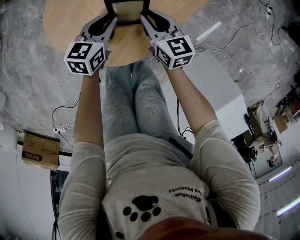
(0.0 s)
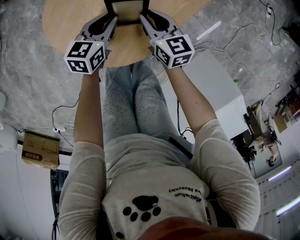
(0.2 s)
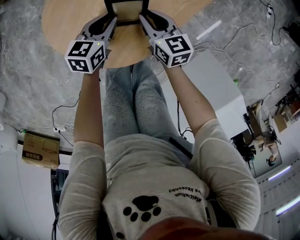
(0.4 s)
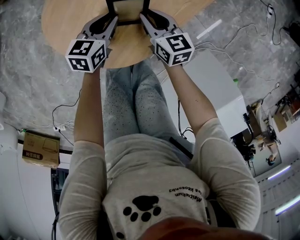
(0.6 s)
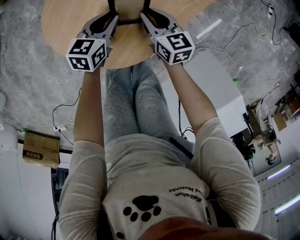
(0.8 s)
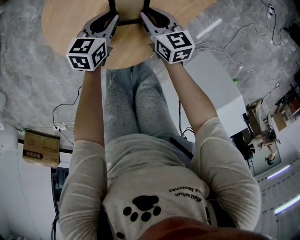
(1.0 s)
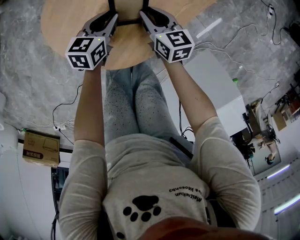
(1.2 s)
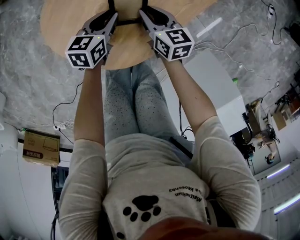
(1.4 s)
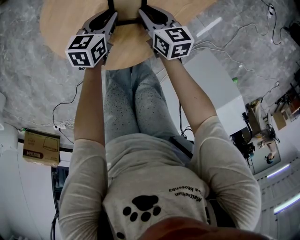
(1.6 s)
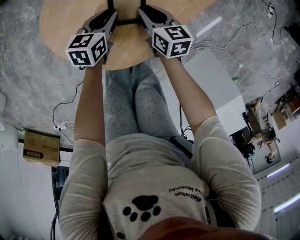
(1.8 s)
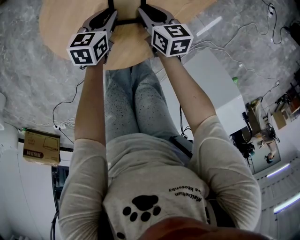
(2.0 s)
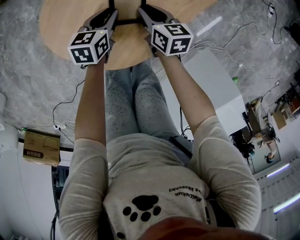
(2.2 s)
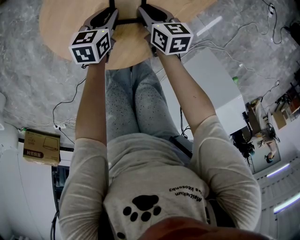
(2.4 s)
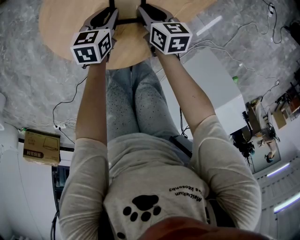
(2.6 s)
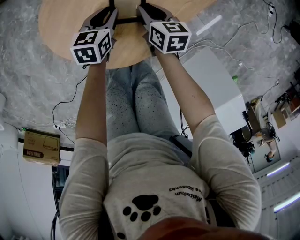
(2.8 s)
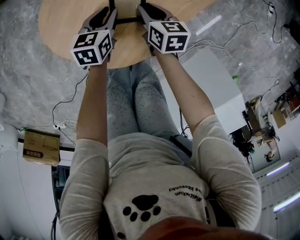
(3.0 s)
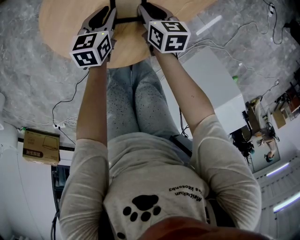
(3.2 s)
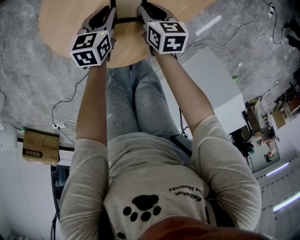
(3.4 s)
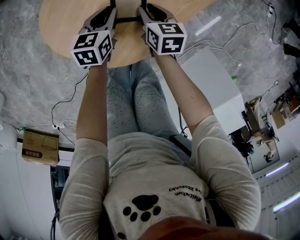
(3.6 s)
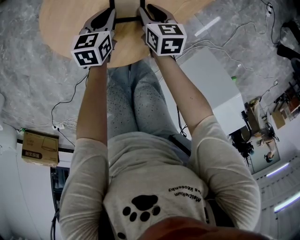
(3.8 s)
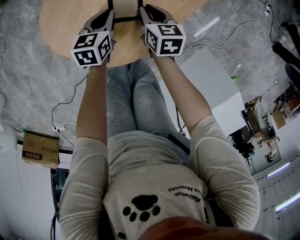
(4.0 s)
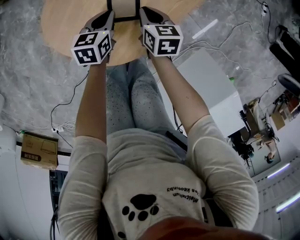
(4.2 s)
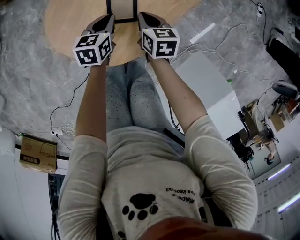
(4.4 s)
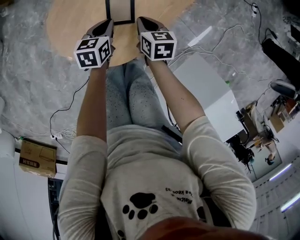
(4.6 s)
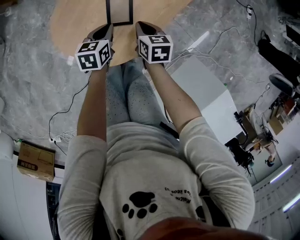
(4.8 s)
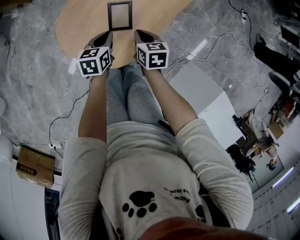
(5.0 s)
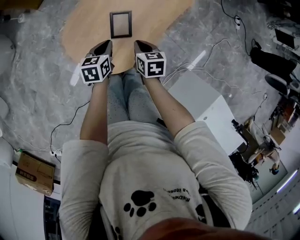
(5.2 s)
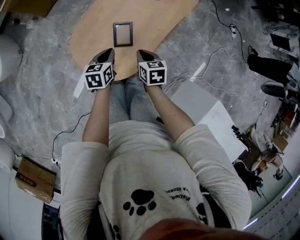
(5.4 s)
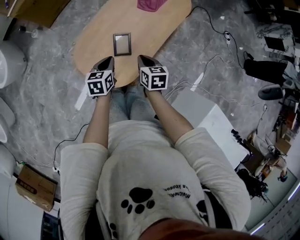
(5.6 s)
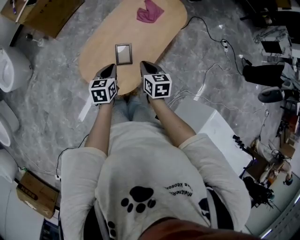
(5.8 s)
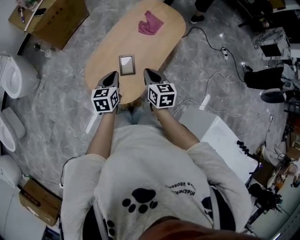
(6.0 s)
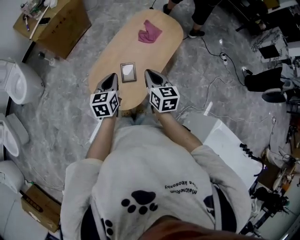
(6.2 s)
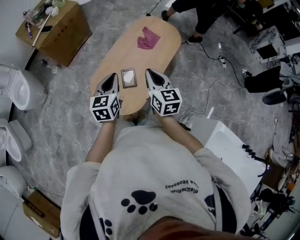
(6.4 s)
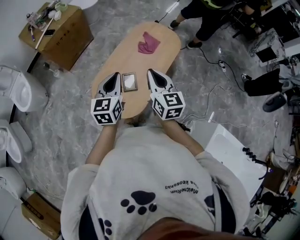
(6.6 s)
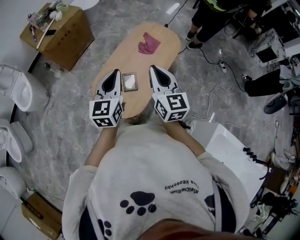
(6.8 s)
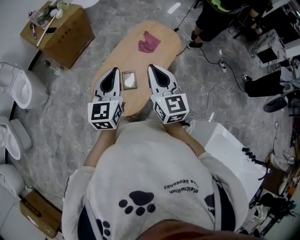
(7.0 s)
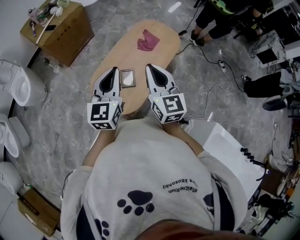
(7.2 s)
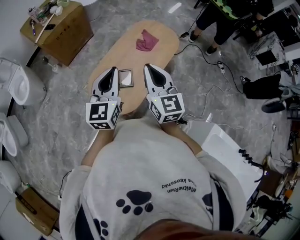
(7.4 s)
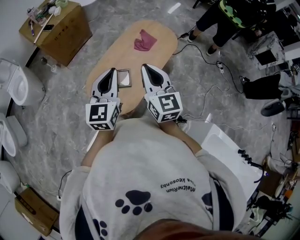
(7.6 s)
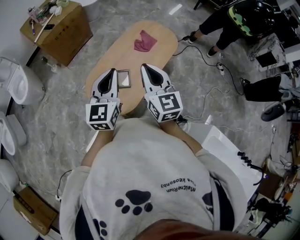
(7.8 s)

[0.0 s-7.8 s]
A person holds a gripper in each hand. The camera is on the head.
0.0 to 1.6 s: The right gripper shifts by approximately 5 cm.
1.6 to 3.2 s: The grippers stay close to where they were, moving slightly.
3.2 to 4.6 s: Both grippers move upward, roughly 5 cm.
4.6 to 6.2 s: Both grippers move upward, some 35 cm. The right gripper rotates some 30 degrees. The left gripper changes its angle by approximately 30 degrees.
6.2 to 7.8 s: The grippers both shift upward by about 15 cm. The right gripper turns by some 30 degrees; the left gripper turns by roughly 30 degrees.

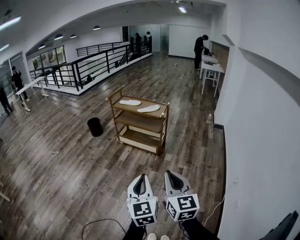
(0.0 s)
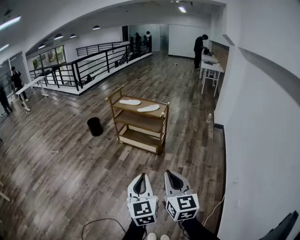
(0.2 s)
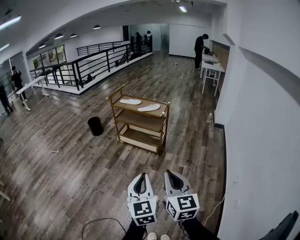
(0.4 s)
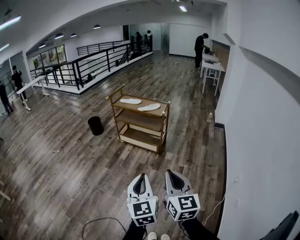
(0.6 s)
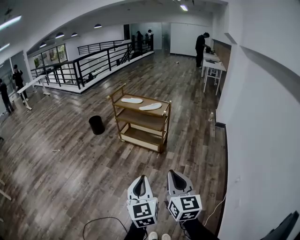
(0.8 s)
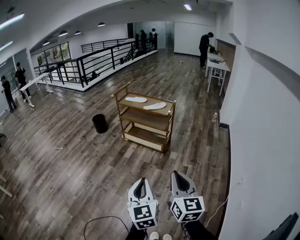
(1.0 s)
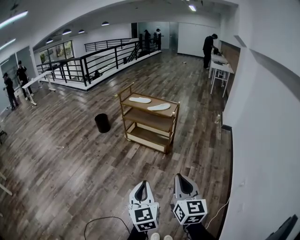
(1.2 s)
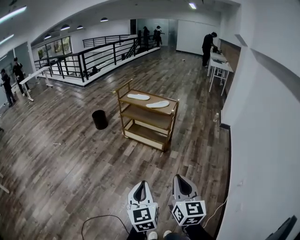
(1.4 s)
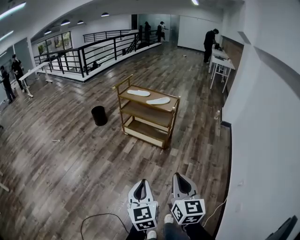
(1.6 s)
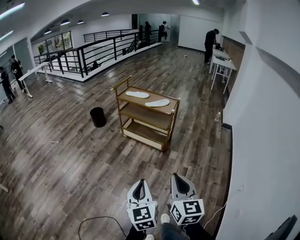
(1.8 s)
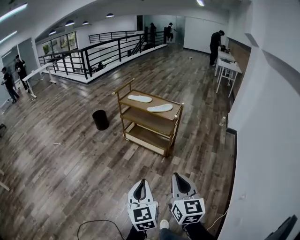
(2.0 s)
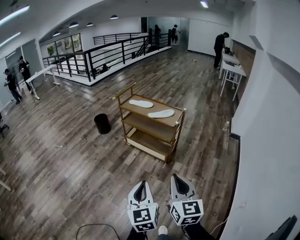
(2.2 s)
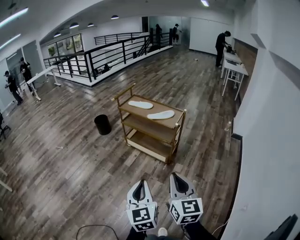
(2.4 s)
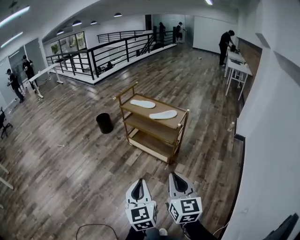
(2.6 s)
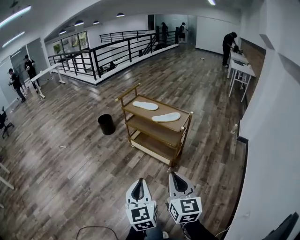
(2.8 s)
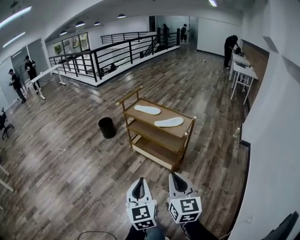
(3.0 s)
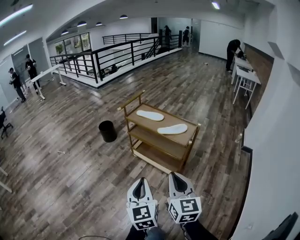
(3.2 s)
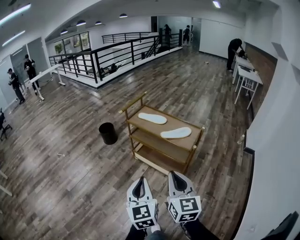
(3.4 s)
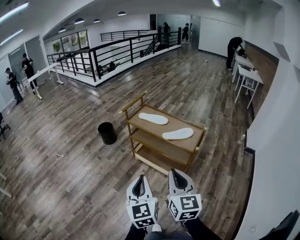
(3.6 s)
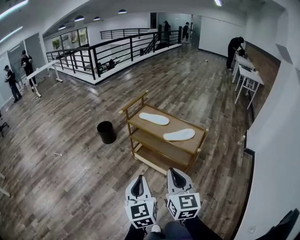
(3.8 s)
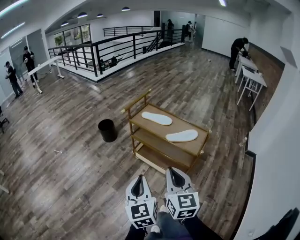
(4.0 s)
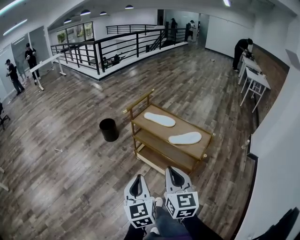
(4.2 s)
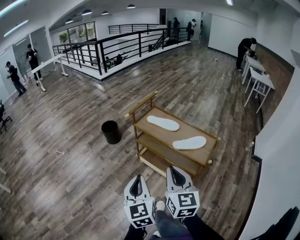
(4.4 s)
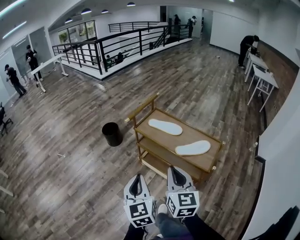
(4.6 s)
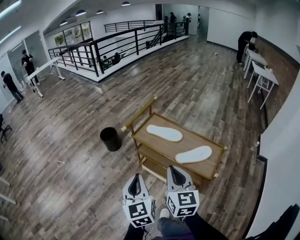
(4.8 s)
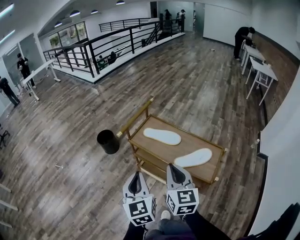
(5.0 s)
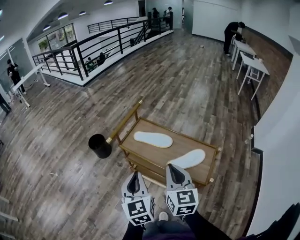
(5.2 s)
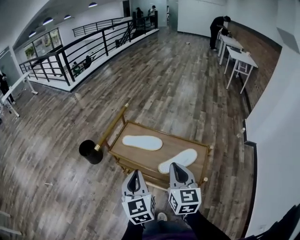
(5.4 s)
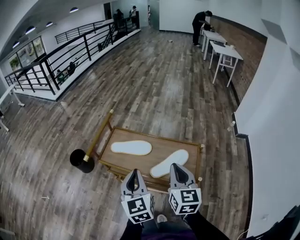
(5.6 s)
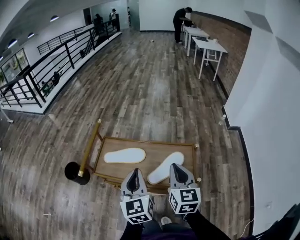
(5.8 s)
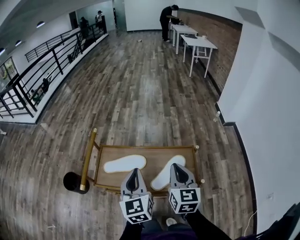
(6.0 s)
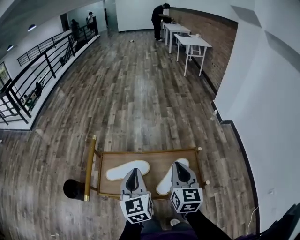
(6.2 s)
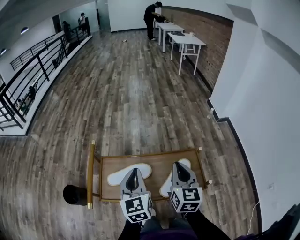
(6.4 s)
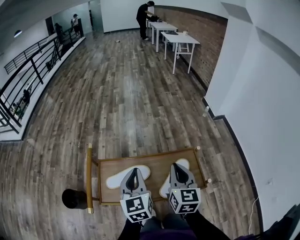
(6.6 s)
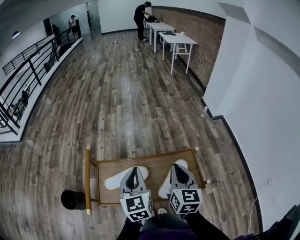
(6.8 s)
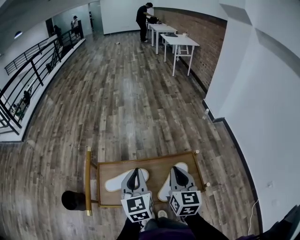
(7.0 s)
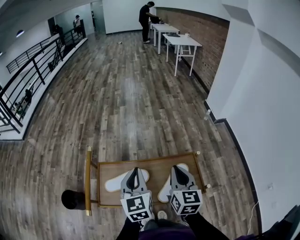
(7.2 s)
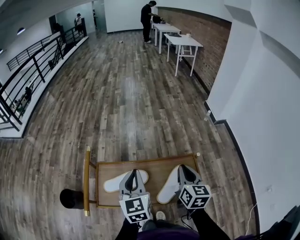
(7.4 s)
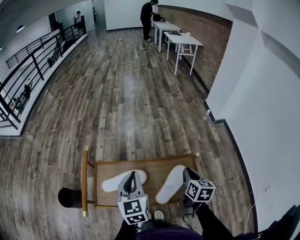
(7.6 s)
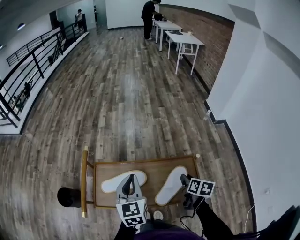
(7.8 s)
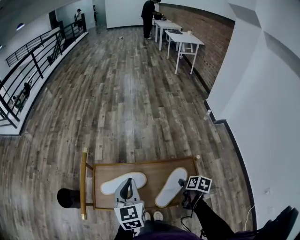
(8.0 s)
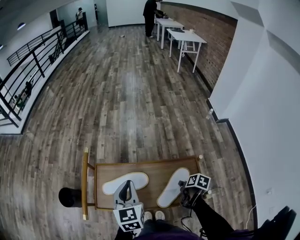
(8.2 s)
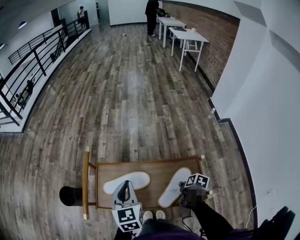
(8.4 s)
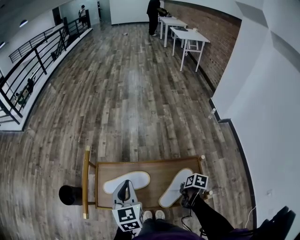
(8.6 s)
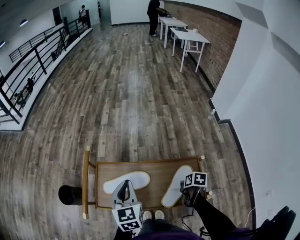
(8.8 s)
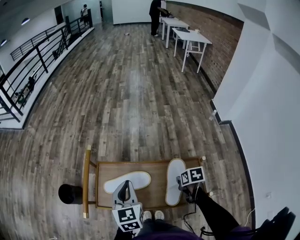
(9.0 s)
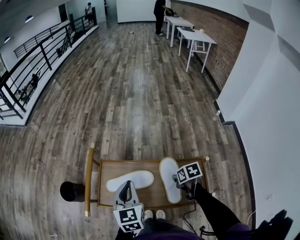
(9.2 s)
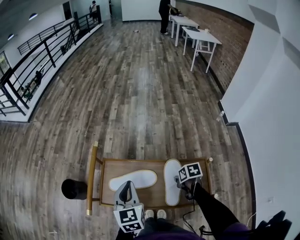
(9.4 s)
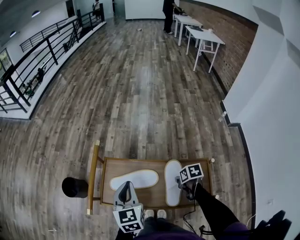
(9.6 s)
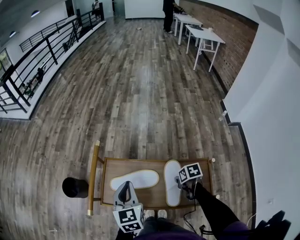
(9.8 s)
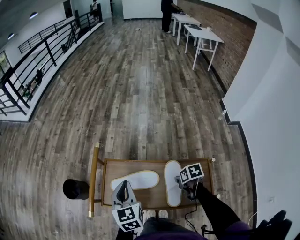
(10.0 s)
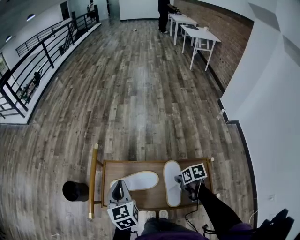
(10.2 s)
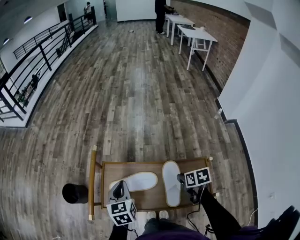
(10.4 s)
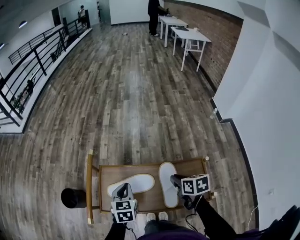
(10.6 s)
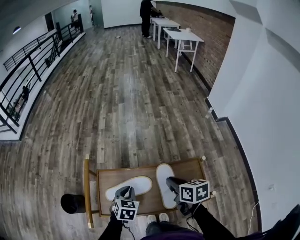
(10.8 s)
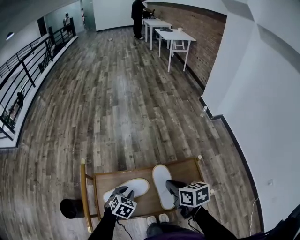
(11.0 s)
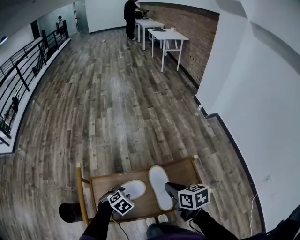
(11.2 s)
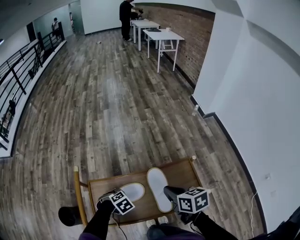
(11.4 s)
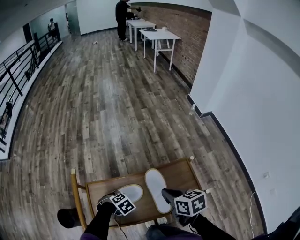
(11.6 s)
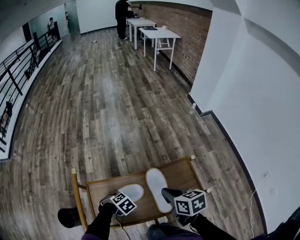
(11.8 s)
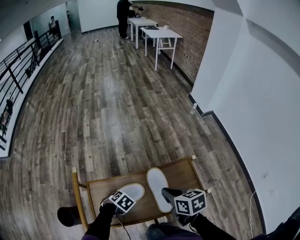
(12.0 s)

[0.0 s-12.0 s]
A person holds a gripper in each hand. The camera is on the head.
0.0 to 1.6 s: The right gripper moves about 5 cm; the left gripper is displaced downward by about 5 cm.
1.6 to 3.0 s: The two grippers go about 30 cm forward.
3.0 to 4.4 s: The grippers both shift forward by some 30 cm.
4.4 to 6.0 s: The right gripper shifts by about 35 cm, and swivels about 40 degrees. Meanwhile the left gripper shifts by approximately 40 cm, and changes its angle by about 40 degrees.
6.0 to 7.6 s: The right gripper travels downward, forward and to the right by roughly 15 cm, and turns by some 30 degrees; the left gripper heads forward, covering about 10 cm.
7.6 to 9.0 s: The right gripper heads downward, covering about 10 cm, angles its fingers downward, by some 30 degrees, and opens, then closes once more; the left gripper moves some 5 cm.
9.0 to 10.4 s: The left gripper heads downward, covering roughly 5 cm.
10.4 to 12.0 s: The left gripper goes approximately 20 cm downward, angles its fingers downward, by some 50 degrees, and opens, then closes again. Meanwhile the right gripper moves upward, roughly 10 cm.

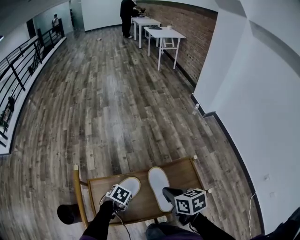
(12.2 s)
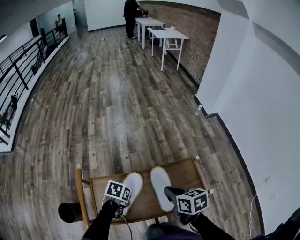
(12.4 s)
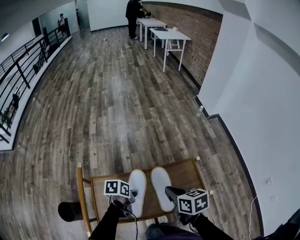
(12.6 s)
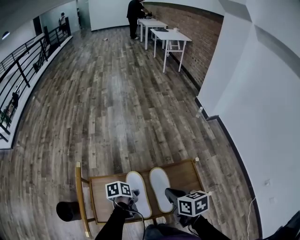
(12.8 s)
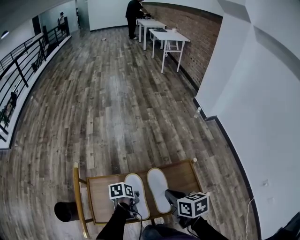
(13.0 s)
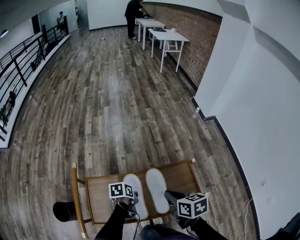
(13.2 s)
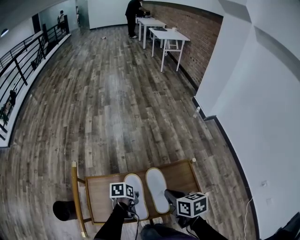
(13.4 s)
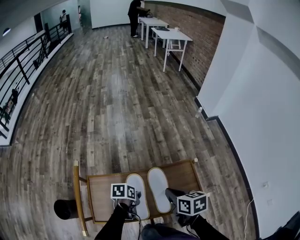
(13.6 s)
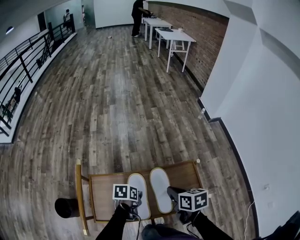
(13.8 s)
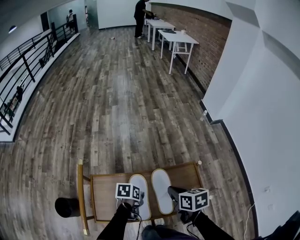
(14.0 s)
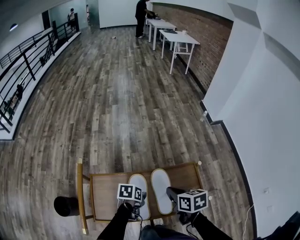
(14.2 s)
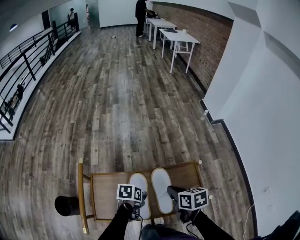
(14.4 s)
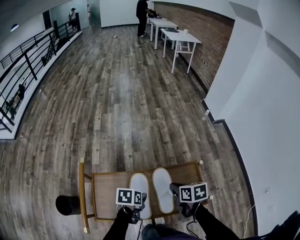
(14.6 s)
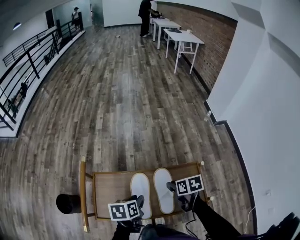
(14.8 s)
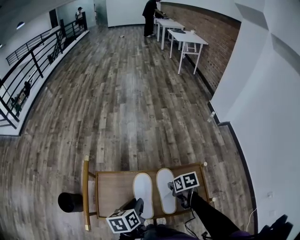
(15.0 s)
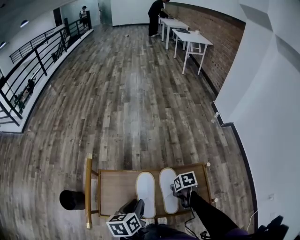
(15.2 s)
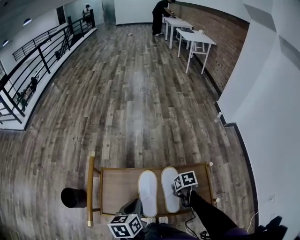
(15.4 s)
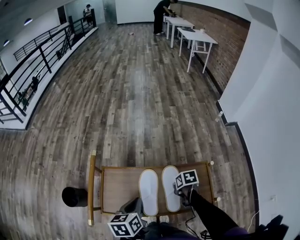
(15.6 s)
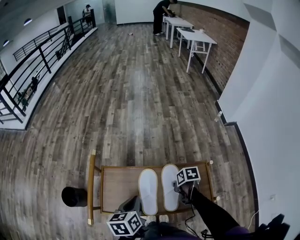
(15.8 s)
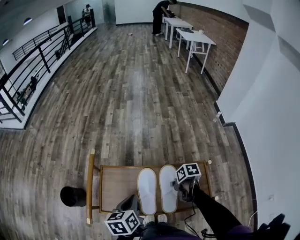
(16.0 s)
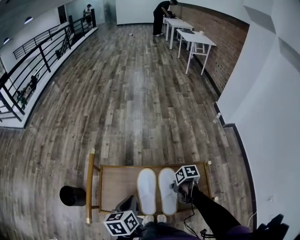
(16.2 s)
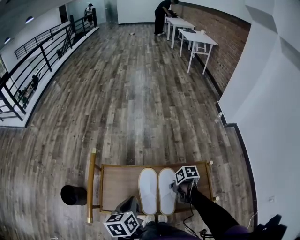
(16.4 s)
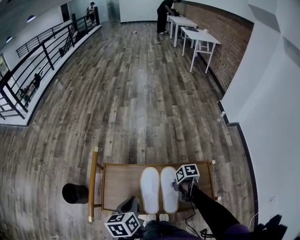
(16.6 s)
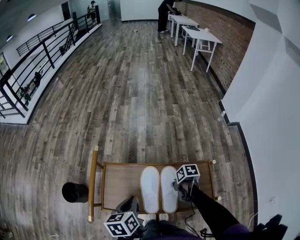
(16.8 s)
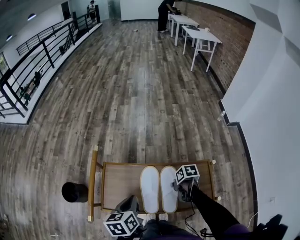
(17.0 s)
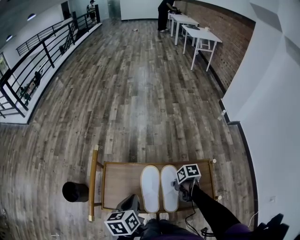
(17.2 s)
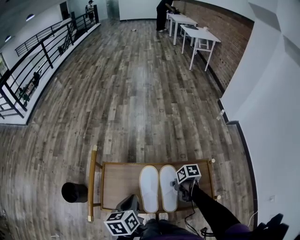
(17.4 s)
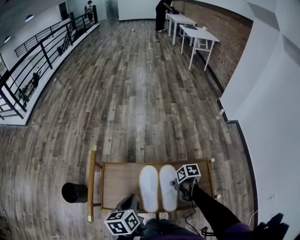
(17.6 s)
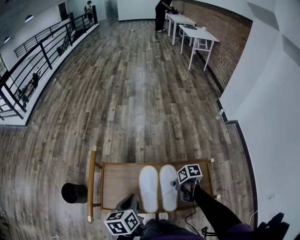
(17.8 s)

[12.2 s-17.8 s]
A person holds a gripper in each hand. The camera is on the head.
12.2 to 13.6 s: The left gripper changes place by about 10 cm, and turns by some 40 degrees.
13.6 to 15.0 s: The left gripper is displaced upward by some 10 cm, swivels about 30 degrees, and opens. The right gripper goes roughly 10 cm downward, and swivels about 20 degrees.
15.0 to 16.4 s: The right gripper shifts by about 5 cm, and changes its angle by some 20 degrees; the left gripper shifts by approximately 5 cm, and closes.
16.4 to 17.8 s: The grippers make only small movements.
